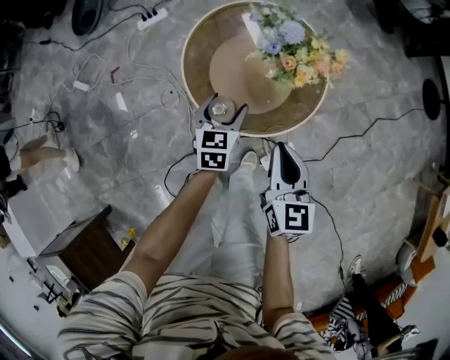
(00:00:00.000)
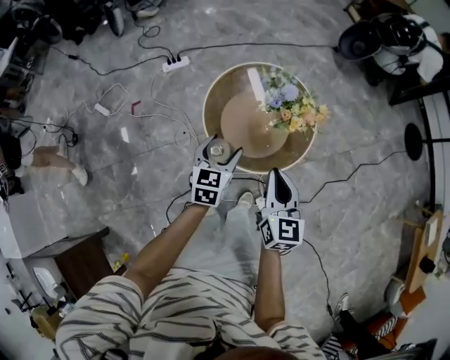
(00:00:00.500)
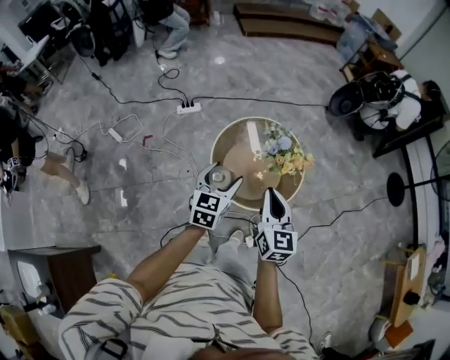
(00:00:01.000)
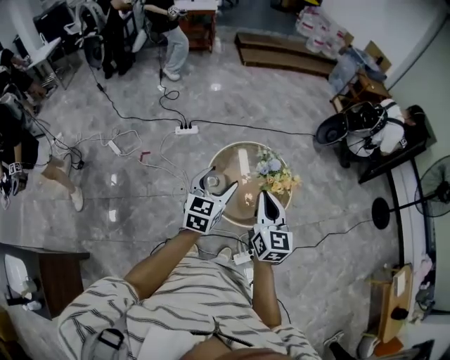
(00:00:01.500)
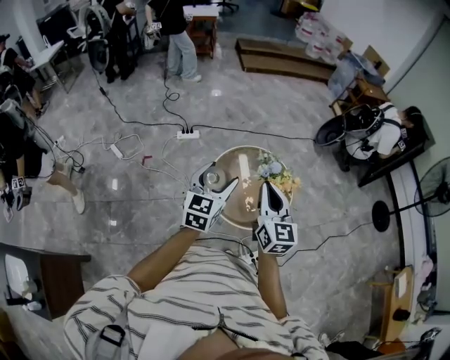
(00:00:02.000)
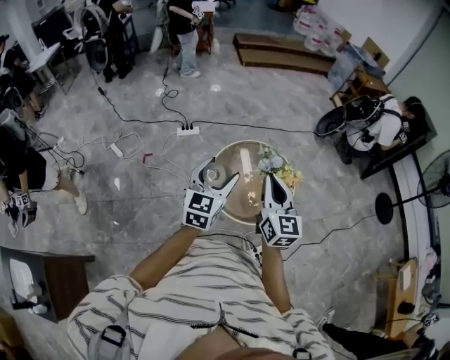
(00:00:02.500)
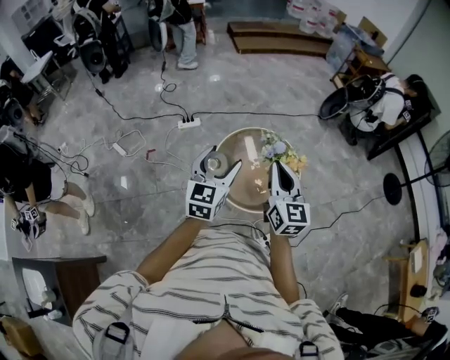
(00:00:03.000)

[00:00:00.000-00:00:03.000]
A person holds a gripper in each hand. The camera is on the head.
00:00:00.000 to 00:00:01.500: The two grippers go some 35 cm upward. The right gripper turns by roughly 20 degrees. The left gripper turns by about 20 degrees.
00:00:01.500 to 00:00:03.000: There are only small adjustments of the grippers.

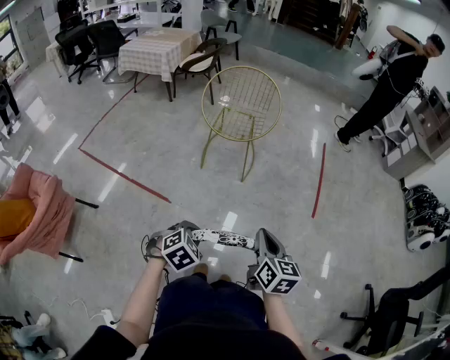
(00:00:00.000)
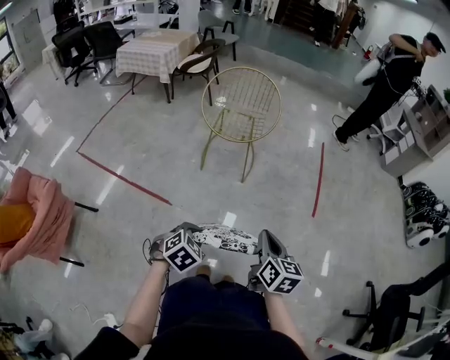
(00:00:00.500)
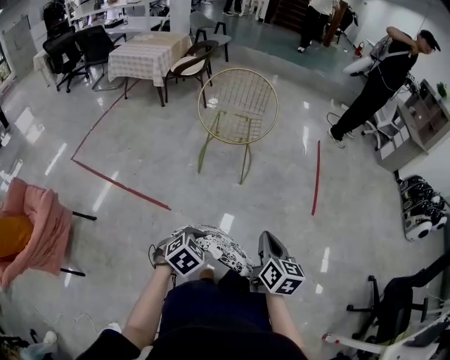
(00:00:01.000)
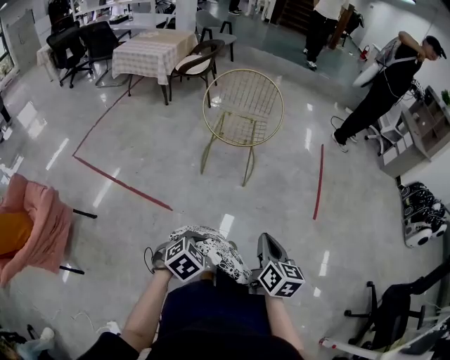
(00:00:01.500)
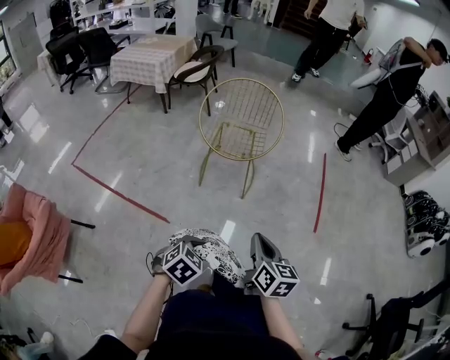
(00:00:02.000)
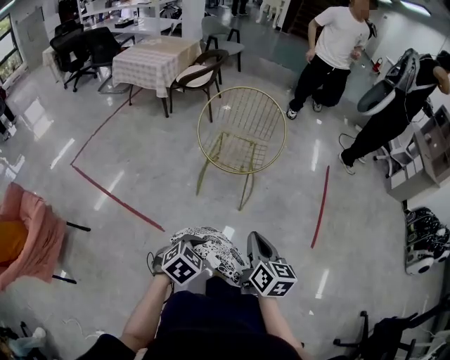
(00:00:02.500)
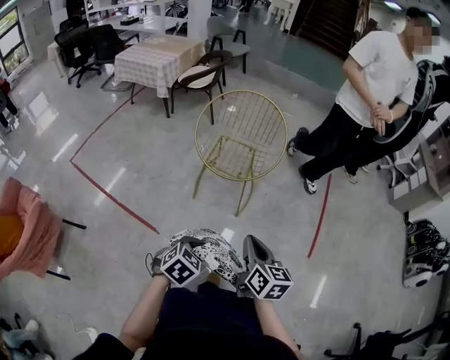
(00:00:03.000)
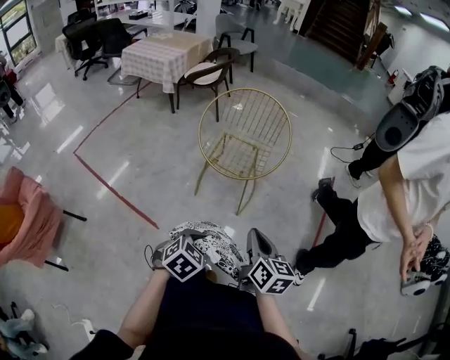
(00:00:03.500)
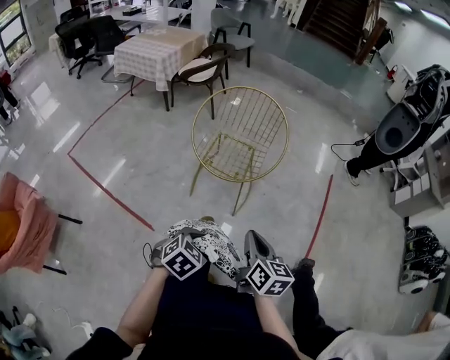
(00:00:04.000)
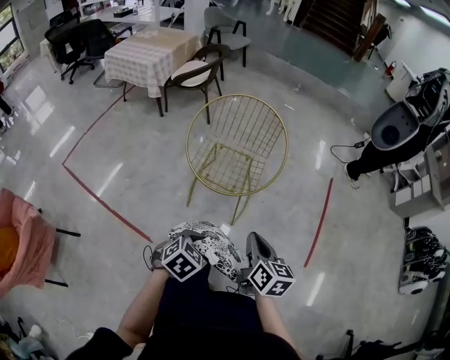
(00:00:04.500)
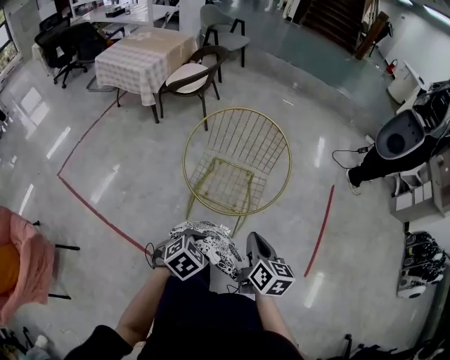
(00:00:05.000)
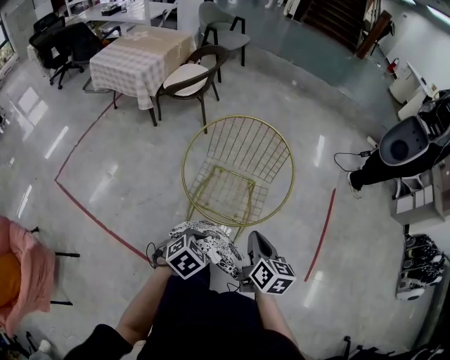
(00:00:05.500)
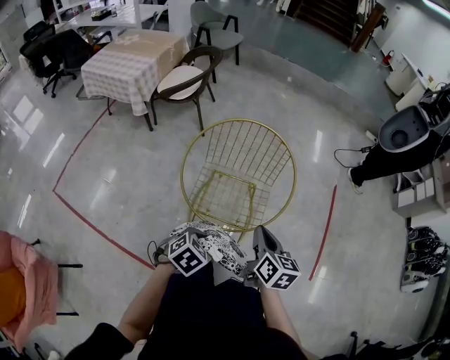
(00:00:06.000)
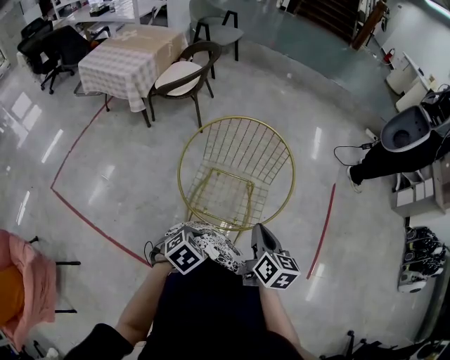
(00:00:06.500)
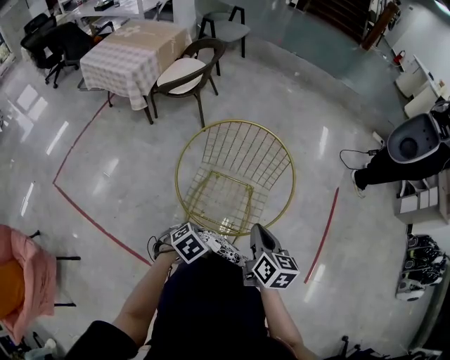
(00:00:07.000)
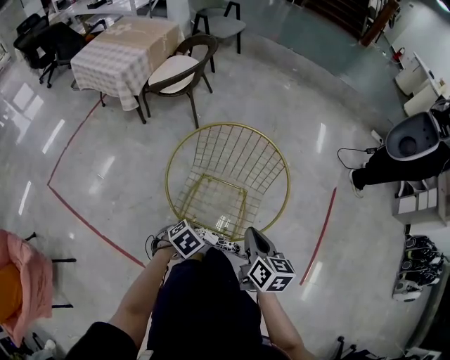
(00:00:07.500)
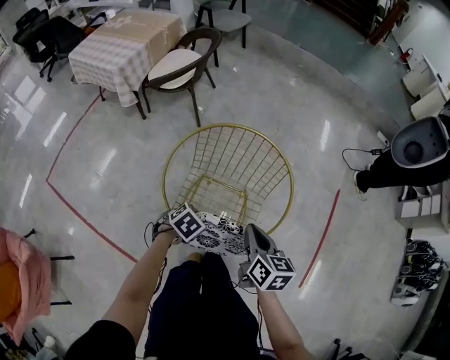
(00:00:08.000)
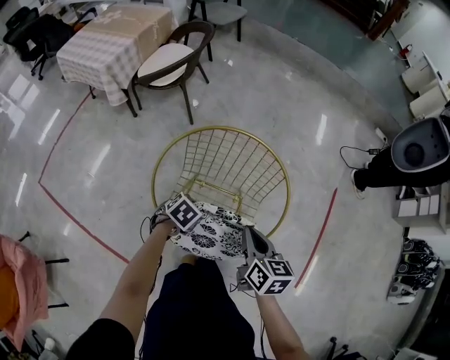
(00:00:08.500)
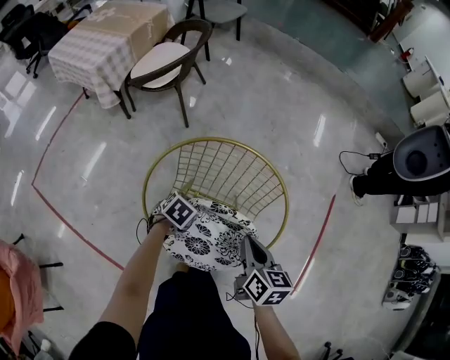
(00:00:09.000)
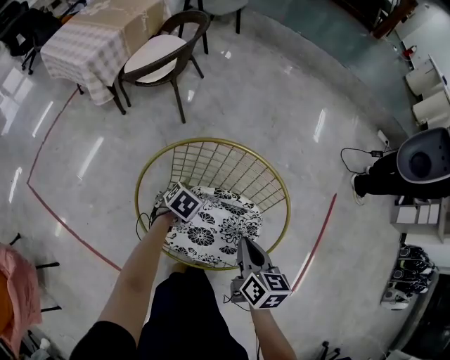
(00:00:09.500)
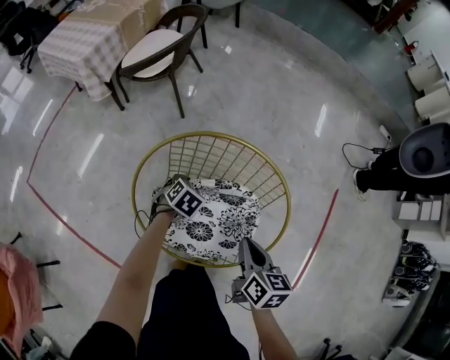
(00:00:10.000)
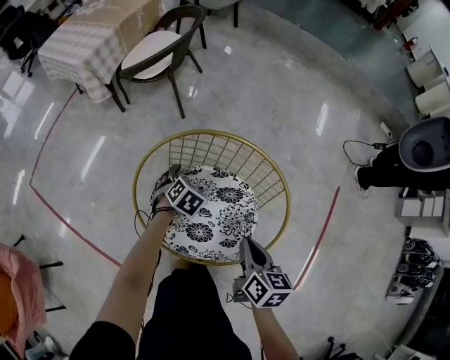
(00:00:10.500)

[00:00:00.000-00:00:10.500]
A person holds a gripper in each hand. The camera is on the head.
00:00:00.000 to 00:00:02.000: The right gripper goes some 10 cm forward and to the left. Meanwhile the left gripper goes some 10 cm forward.
00:00:02.000 to 00:00:04.000: Both grippers move forward, roughly 20 cm.
00:00:04.000 to 00:00:06.500: The left gripper goes approximately 30 cm forward and to the left. The right gripper goes roughly 30 cm forward.
00:00:06.500 to 00:00:08.500: The left gripper travels forward and downward by some 25 cm. Meanwhile the right gripper heads forward, covering some 15 cm.
00:00:08.500 to 00:00:10.500: The left gripper moves some 15 cm, rotates some 20 degrees, and opens, while the right gripper moves downward, some 5 cm.

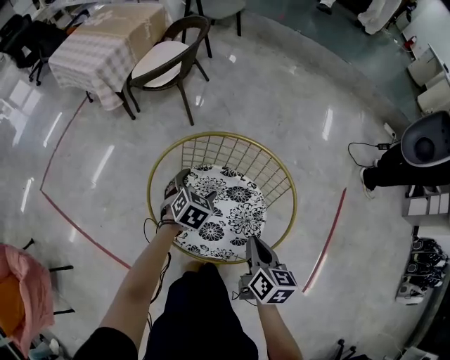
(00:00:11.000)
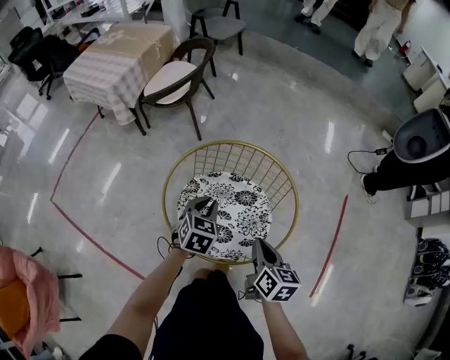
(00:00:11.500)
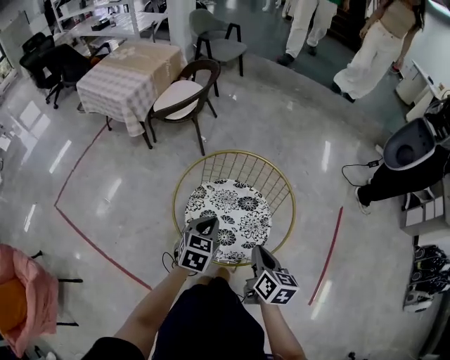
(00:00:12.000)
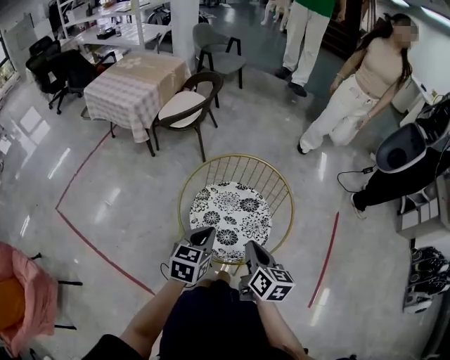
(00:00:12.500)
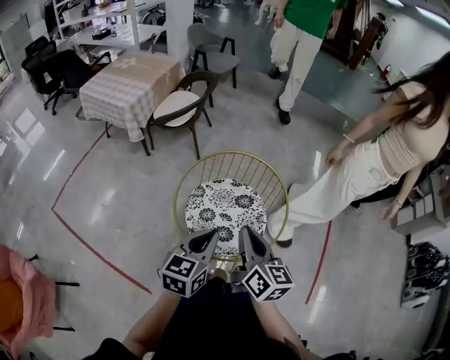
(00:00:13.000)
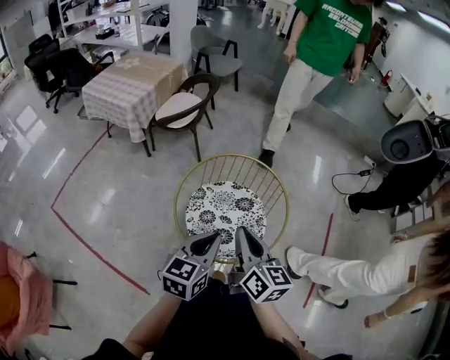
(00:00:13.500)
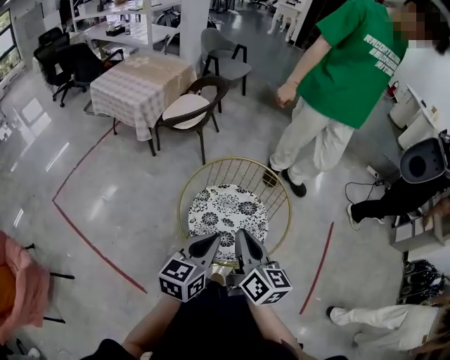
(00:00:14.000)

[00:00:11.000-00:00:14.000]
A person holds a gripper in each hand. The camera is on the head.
00:00:11.000 to 00:00:12.500: The left gripper goes about 30 cm backward and upward, changes its angle by roughly 30 degrees, and closes its fingers. The right gripper moves upward, backward and to the left, roughly 15 cm.
00:00:12.500 to 00:00:14.000: The grippers both shift upward by approximately 10 cm.

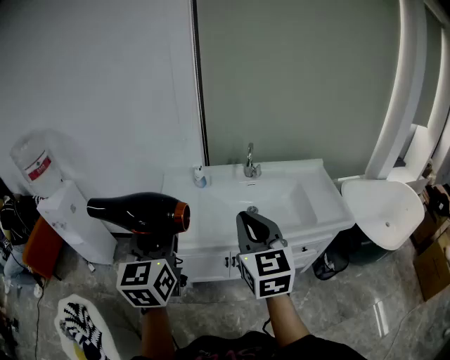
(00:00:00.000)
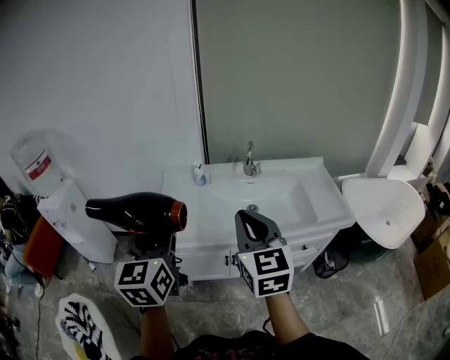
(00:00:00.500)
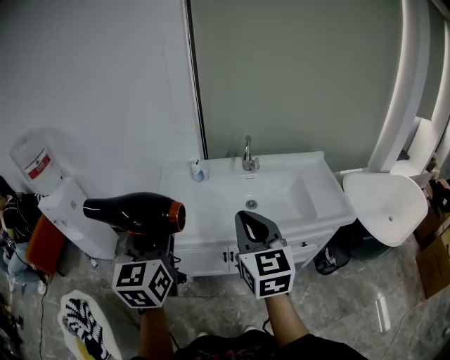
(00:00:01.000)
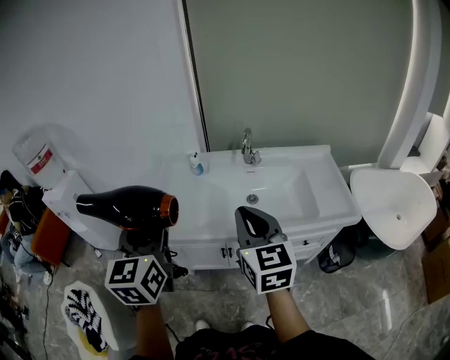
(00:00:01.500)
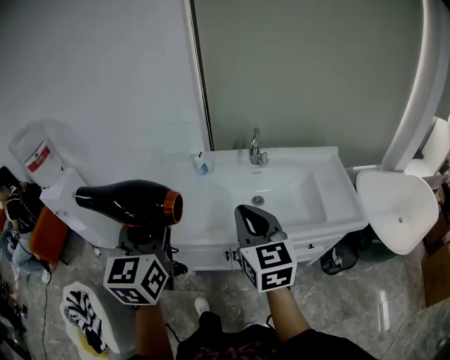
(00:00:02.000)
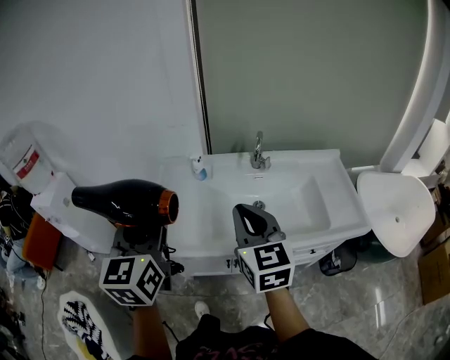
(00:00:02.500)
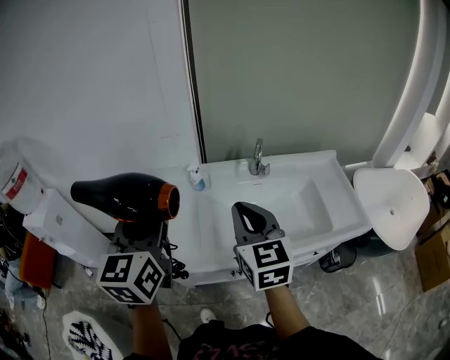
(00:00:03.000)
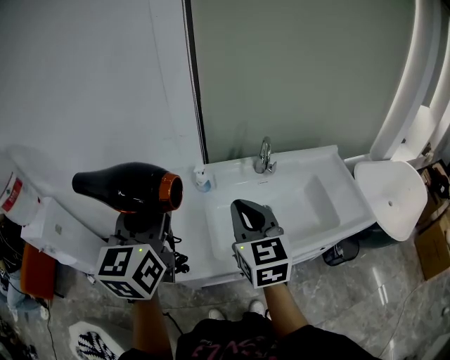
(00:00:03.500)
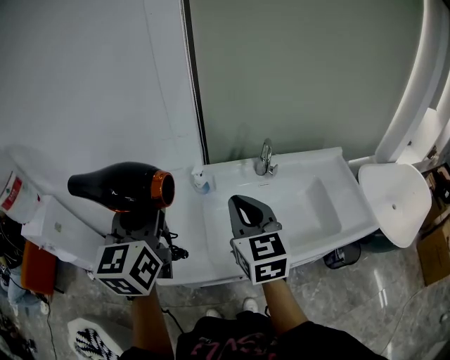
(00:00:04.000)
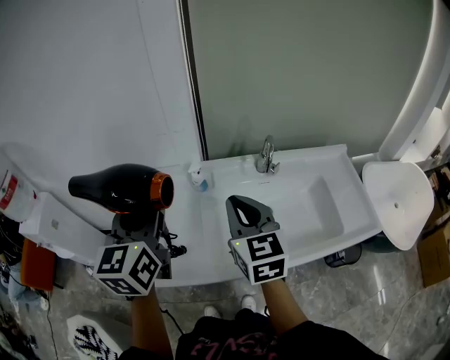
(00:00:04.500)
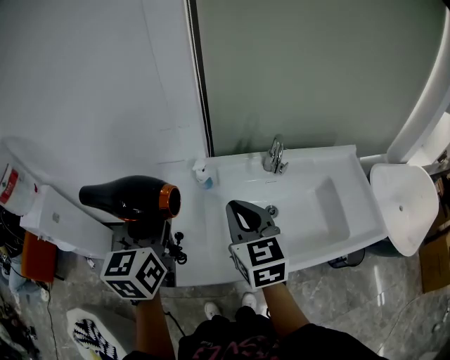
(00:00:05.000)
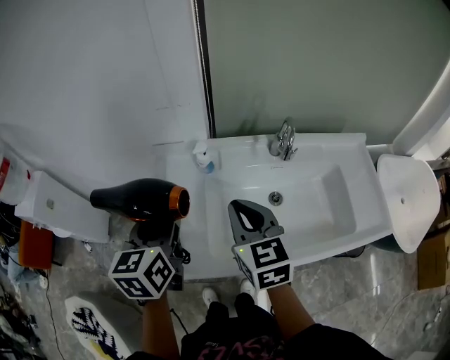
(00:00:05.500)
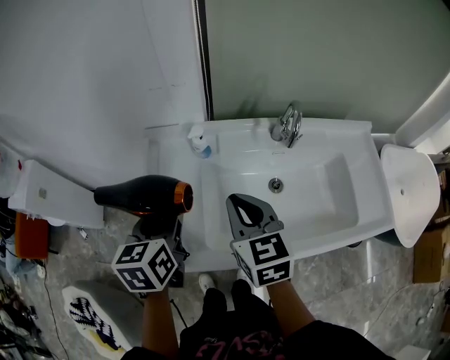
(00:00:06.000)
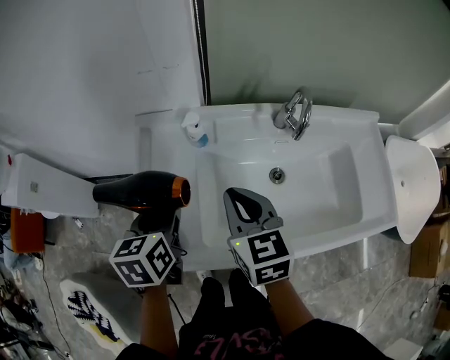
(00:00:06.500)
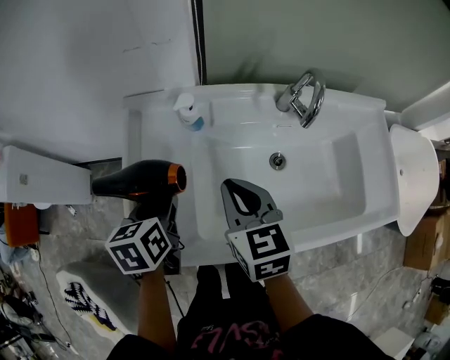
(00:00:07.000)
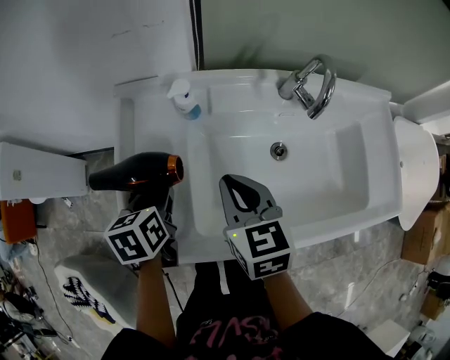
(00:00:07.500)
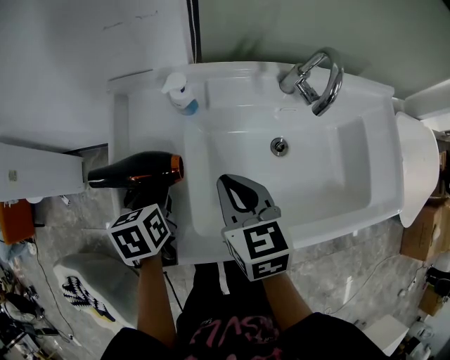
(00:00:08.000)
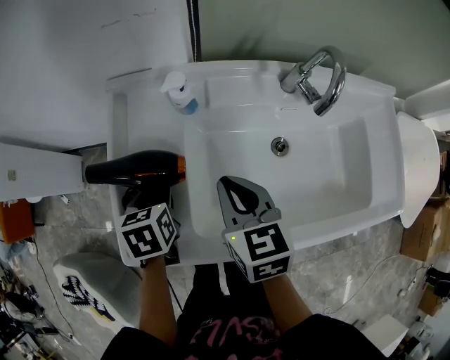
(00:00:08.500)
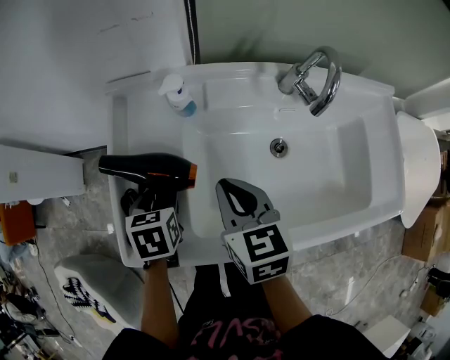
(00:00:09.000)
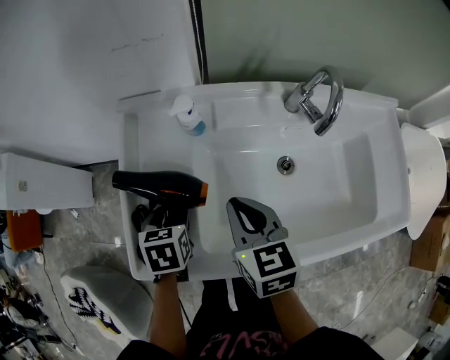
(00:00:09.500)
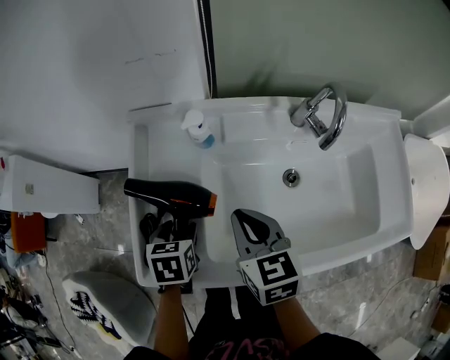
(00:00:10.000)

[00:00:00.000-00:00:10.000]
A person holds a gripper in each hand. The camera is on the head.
00:00:00.000 to 00:00:02.000: Both grippers travel together forward, about 5 cm.
00:00:02.000 to 00:00:04.000: The right gripper moves forward and to the left, roughly 20 cm. The left gripper travels forward by about 20 cm.
00:00:04.000 to 00:00:06.000: The left gripper shifts about 25 cm downward, and tips its fingers downward by roughly 30 degrees; the right gripper moves downward, about 15 cm.
00:00:06.000 to 00:00:08.000: The right gripper heads downward, covering approximately 10 cm. Meanwhile the left gripper shifts some 20 cm downward, and turns by roughly 20 degrees.
00:00:08.000 to 00:00:10.000: The grippers move only a little.
